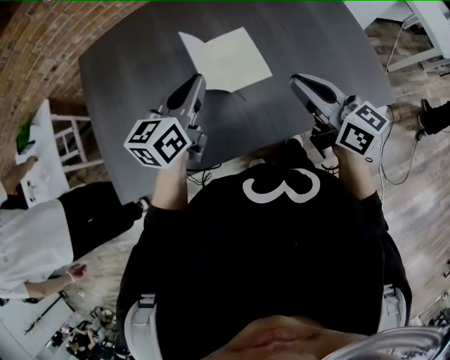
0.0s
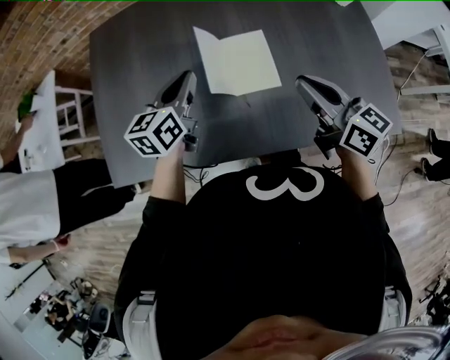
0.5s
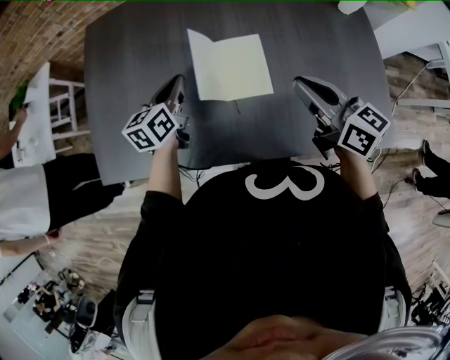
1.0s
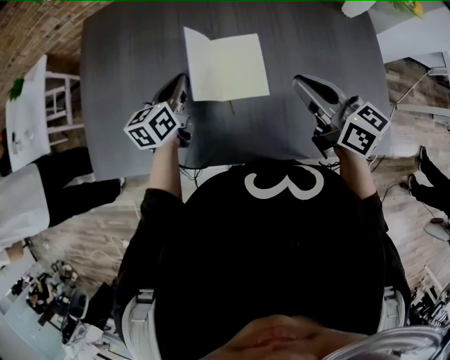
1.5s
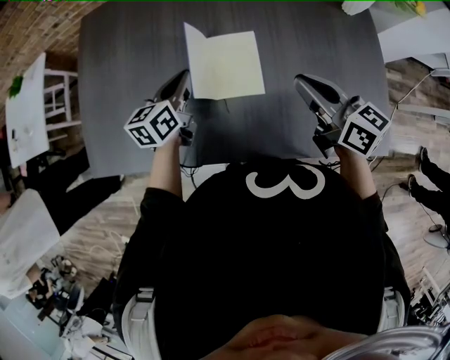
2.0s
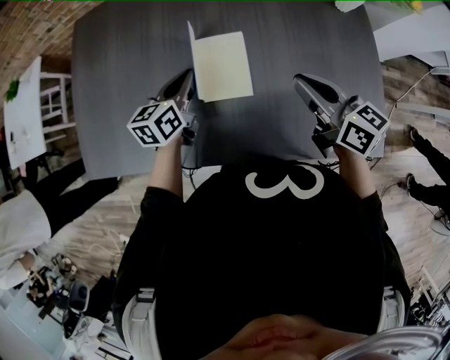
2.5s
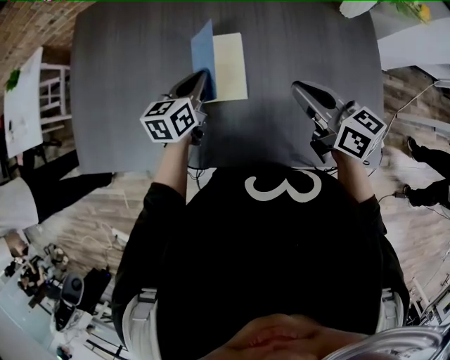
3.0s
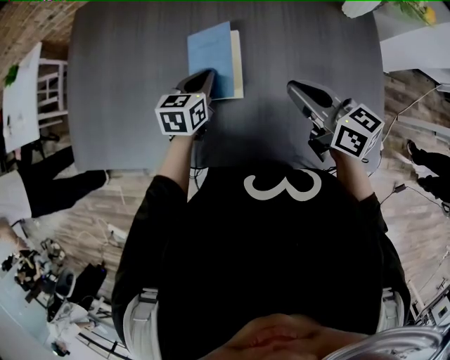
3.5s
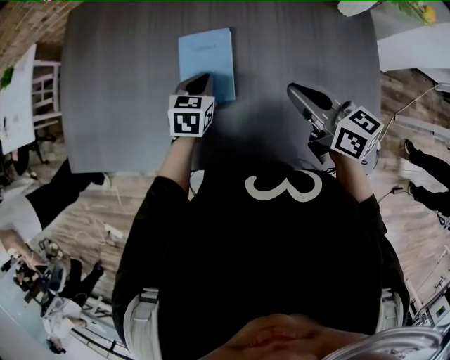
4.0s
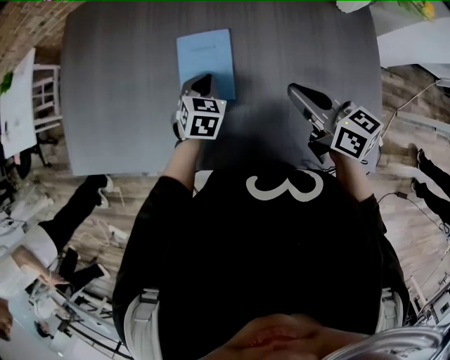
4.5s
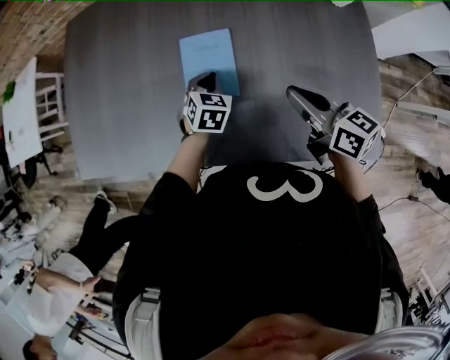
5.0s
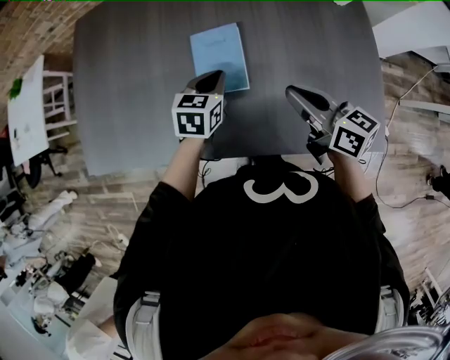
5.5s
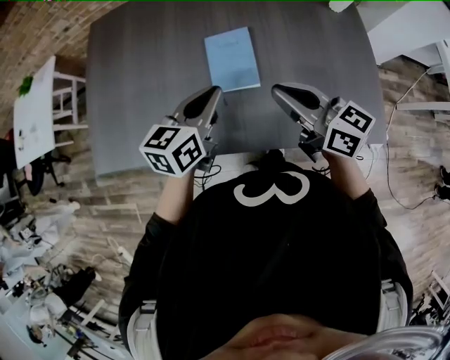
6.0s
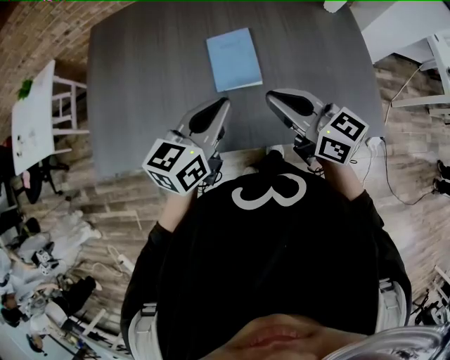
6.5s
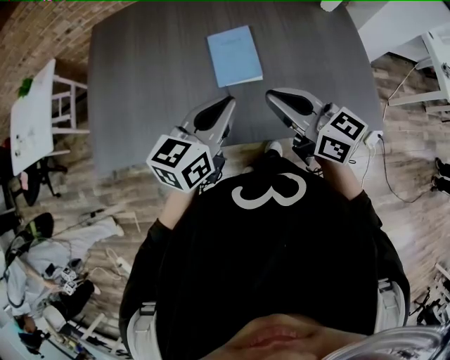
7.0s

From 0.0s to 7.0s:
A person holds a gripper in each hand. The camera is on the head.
From 0.0s to 2.0s: The right gripper is displaced forward and to the right by some 10 cm. The left gripper travels downward and forward by about 15 cm, and rotates about 20 degrees.
From 2.0s to 3.5s: The right gripper travels to the right by some 5 cm, while the left gripper shifts some 15 cm to the right and downward.
From 3.5s to 5.0s: The left gripper changes its angle by about 30 degrees.
From 5.0s to 7.0s: The left gripper goes approximately 30 cm upward and backward, and tilts its fingers some 40 degrees upward. Meanwhile the right gripper shifts about 20 cm to the left, backward and upward.

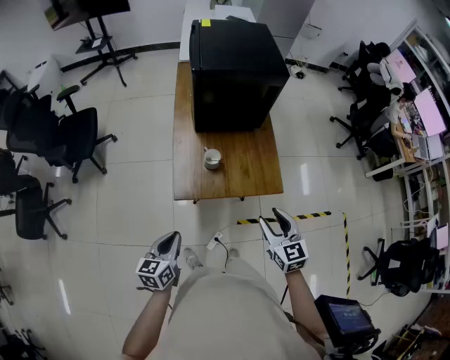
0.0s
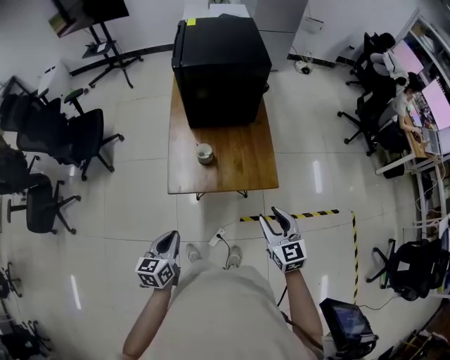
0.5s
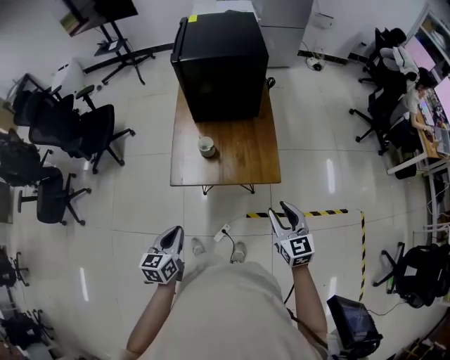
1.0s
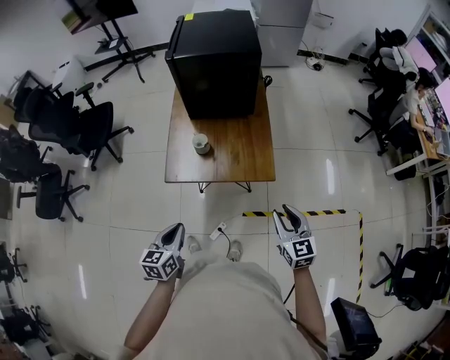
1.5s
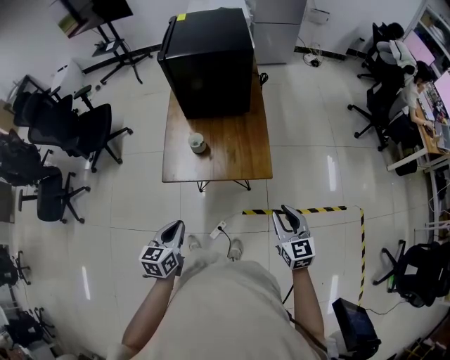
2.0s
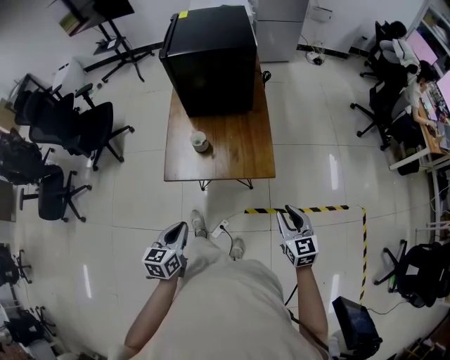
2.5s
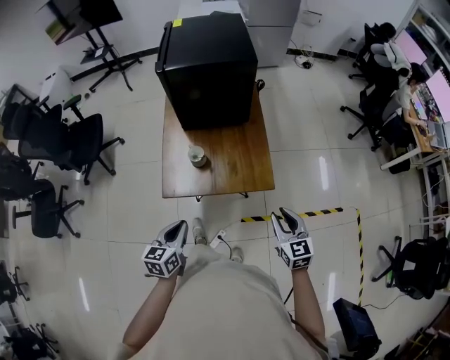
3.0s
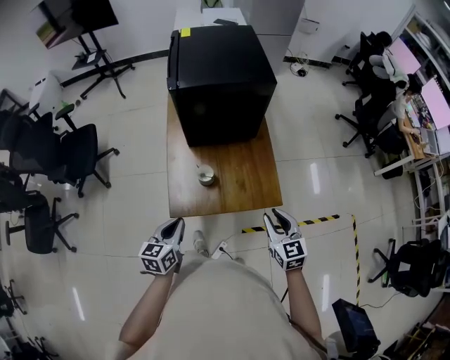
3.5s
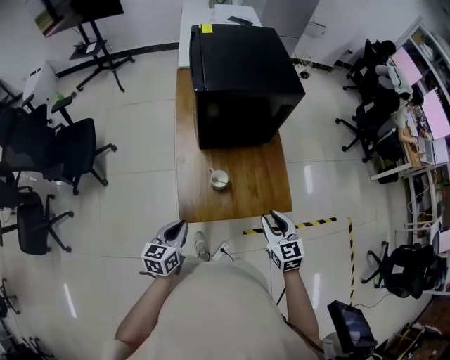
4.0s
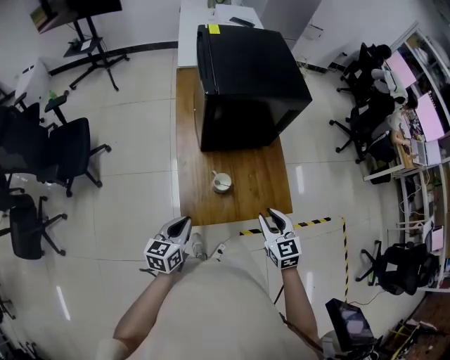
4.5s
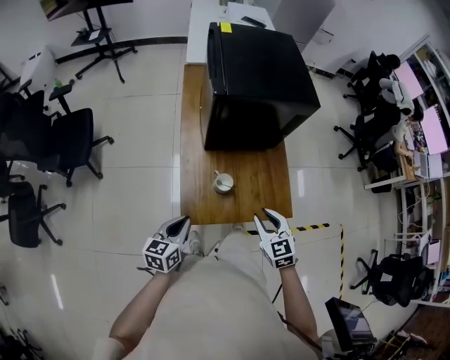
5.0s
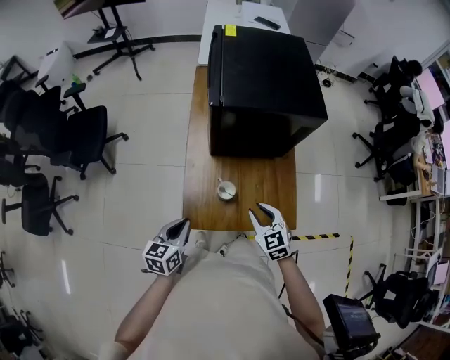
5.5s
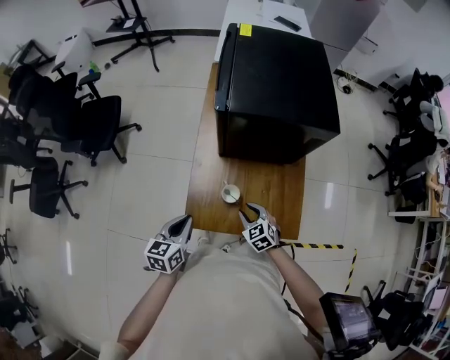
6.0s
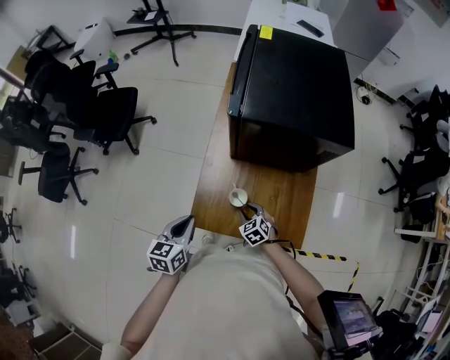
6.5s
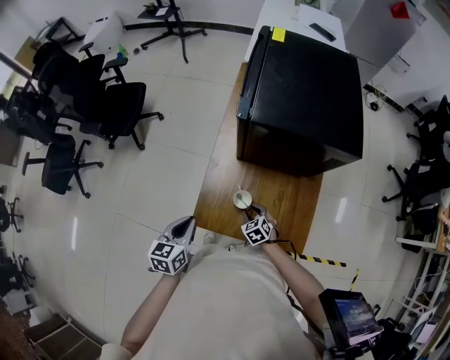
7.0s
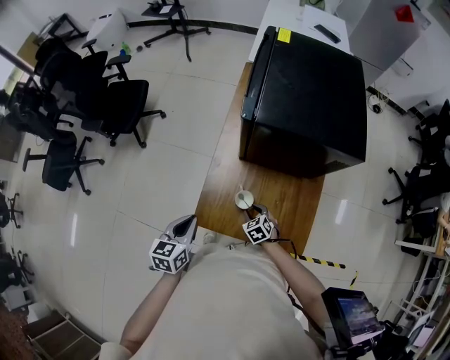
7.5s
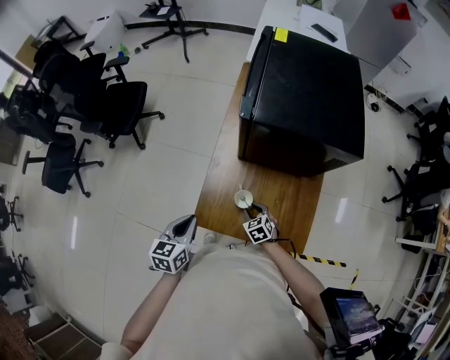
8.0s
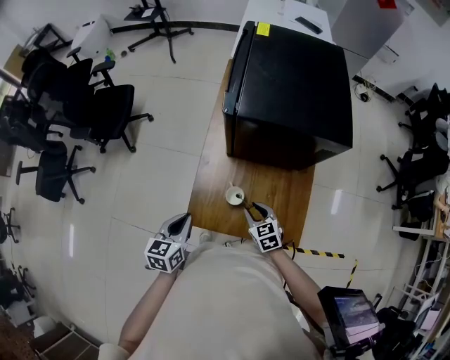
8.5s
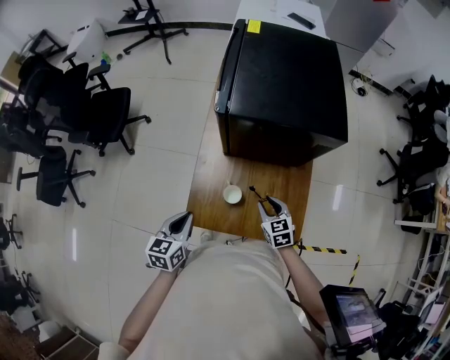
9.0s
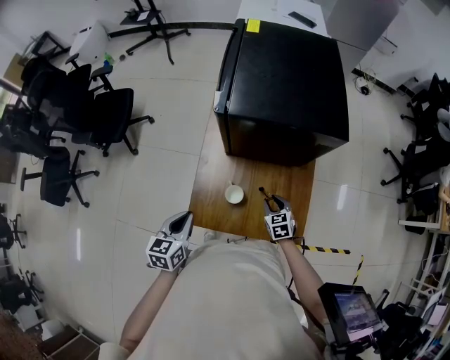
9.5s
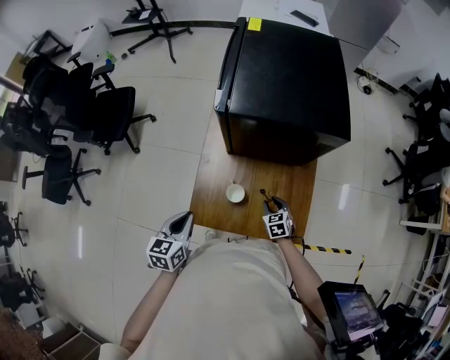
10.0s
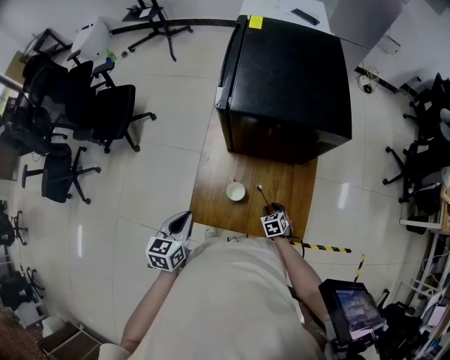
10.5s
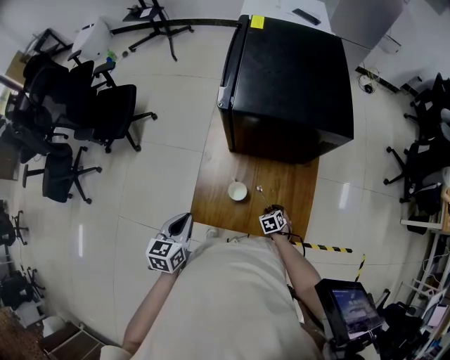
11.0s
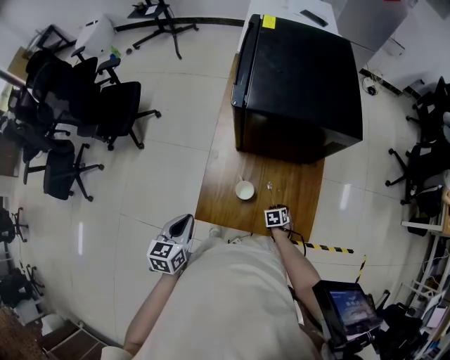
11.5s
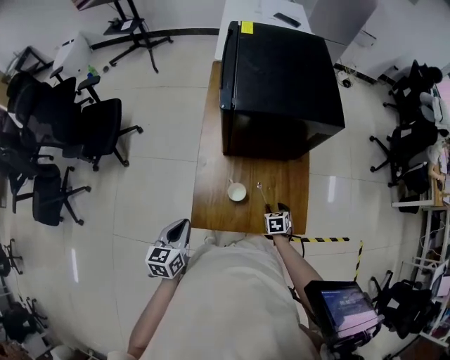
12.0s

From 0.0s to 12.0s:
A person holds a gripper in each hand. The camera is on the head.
From 0.0s to 2.0s: The two grippers go some 20 cm to the right.
From 2.0s to 4.0s: The left gripper is displaced forward and to the left by some 25 cm; the right gripper travels to the left and forward by some 25 cm.
From 4.0s to 6.0s: The right gripper moves downward, forward and to the left, roughly 20 cm, and changes its angle by some 30 degrees, while the left gripper is displaced forward by roughly 5 cm.
From 6.0s to 8.0s: The right gripper moves downward, roughly 10 cm.
From 8.0s to 10.0s: The right gripper moves to the right, approximately 10 cm.
From 10.0s to 12.0s: The right gripper reaches about 10 cm downward, then returns, and swivels roughly 20 degrees, while the left gripper travels to the left by some 5 cm.

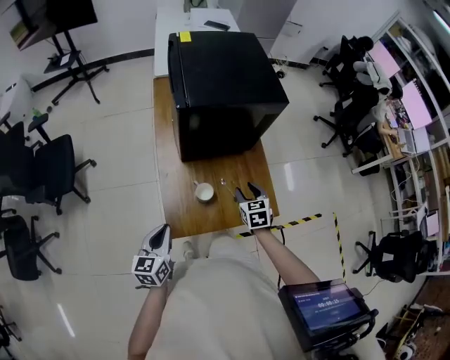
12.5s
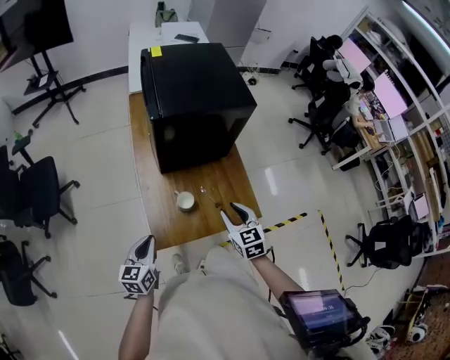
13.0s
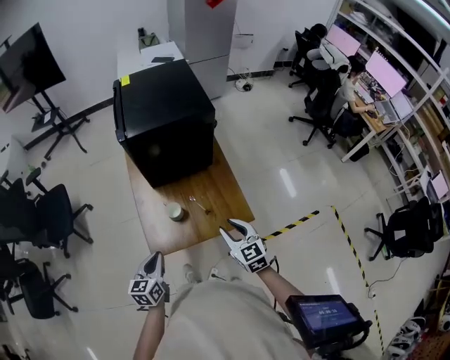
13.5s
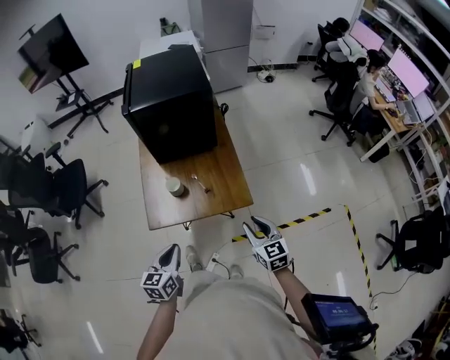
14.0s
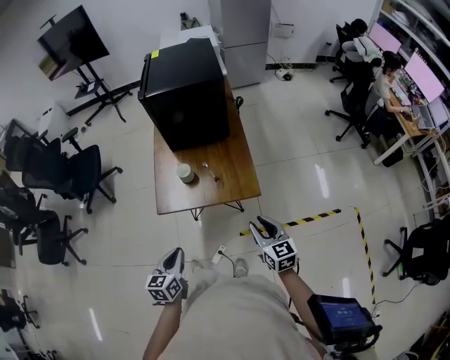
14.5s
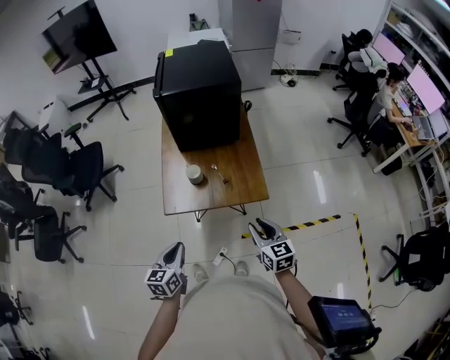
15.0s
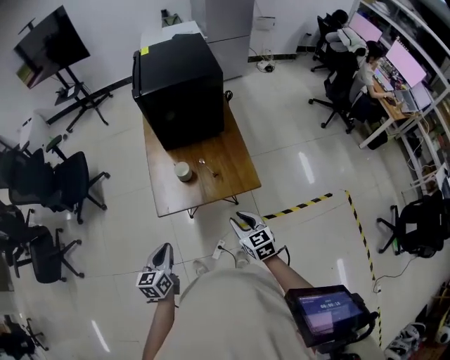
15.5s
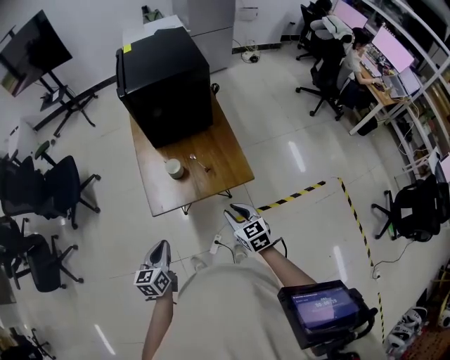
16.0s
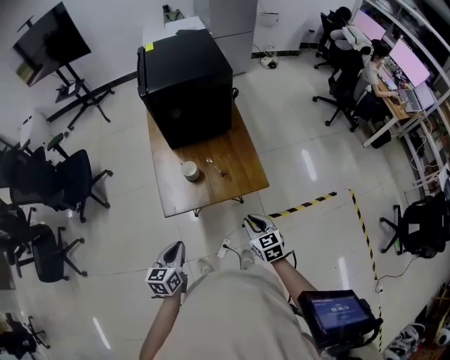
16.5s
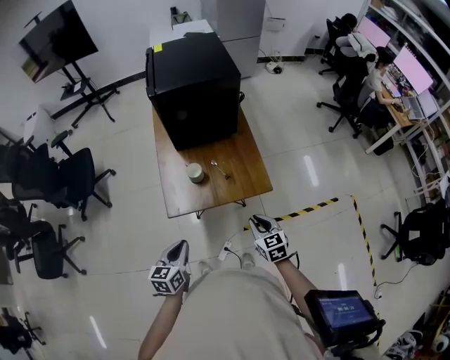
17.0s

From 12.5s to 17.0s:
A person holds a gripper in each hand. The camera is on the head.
From 12.5s to 14.5s: The grippers both shift backward and to the right by roughly 35 cm. The right gripper swivels approximately 30 degrees.
From 14.5s to 17.0s: The left gripper goes approximately 10 cm to the left and forward. The right gripper is displaced to the left and downward by about 10 cm.

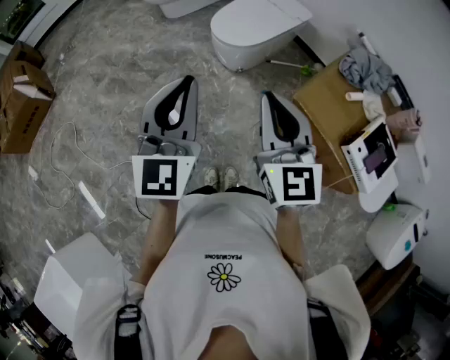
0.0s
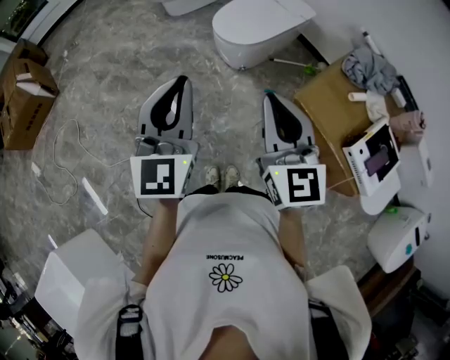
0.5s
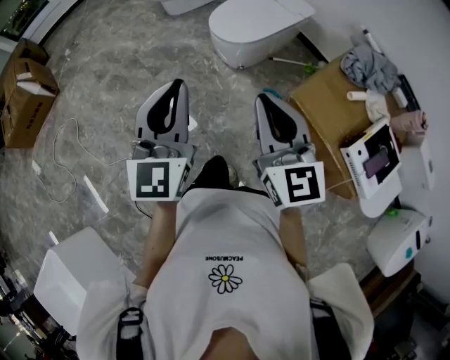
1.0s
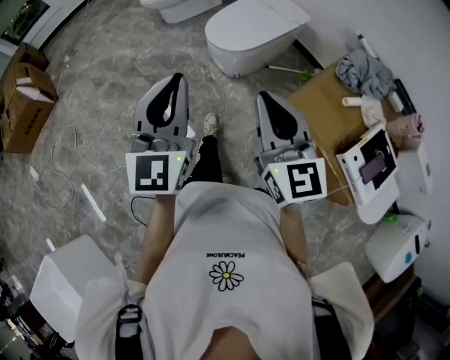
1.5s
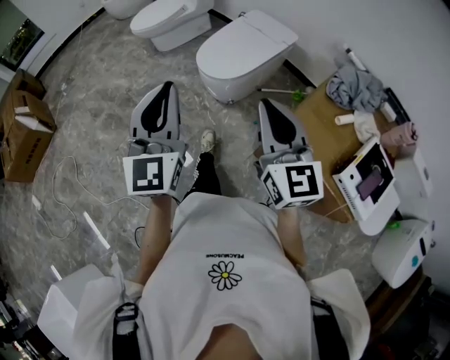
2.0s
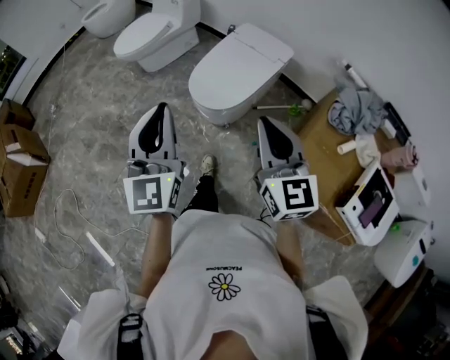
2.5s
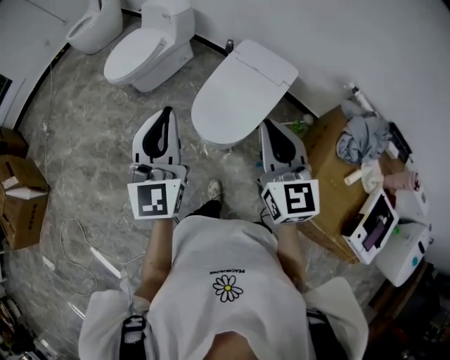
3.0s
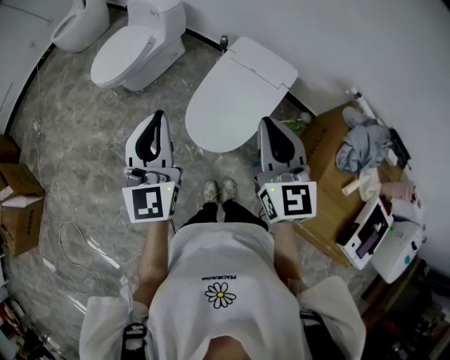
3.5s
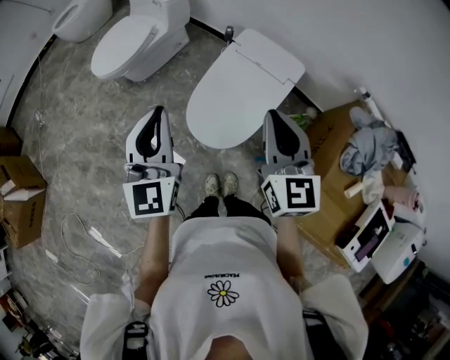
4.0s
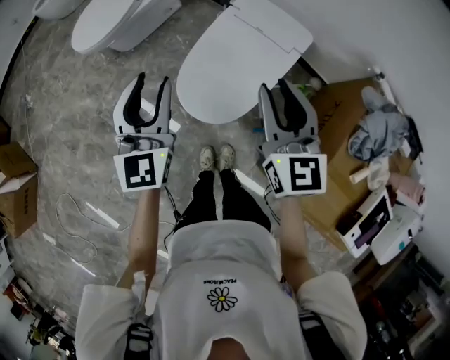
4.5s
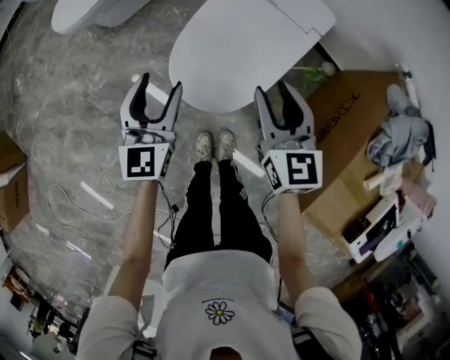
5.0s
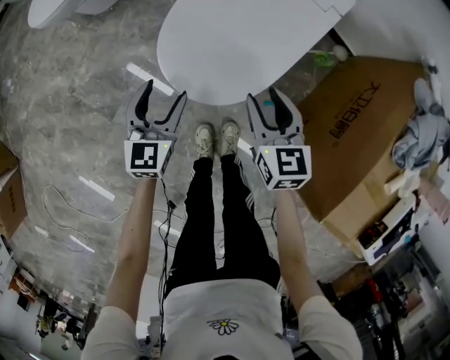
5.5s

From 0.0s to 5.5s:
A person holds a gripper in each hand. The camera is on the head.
From 0.0s to 2.0s: The left gripper shifts about 10 cm forward. Meanwhile the right gripper is displaced forward and to the right by some 10 cm.
From 2.0s to 3.5s: Both grippers are carried forward, about 40 cm.
From 3.5s to 5.5s: Both grippers travel together downward, about 50 cm. The right gripper swivels roughly 30 degrees, and opens up, while the left gripper swivels about 30 degrees, and opens.
